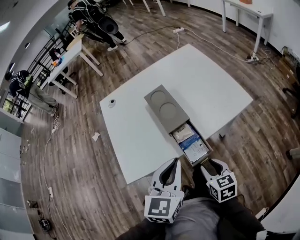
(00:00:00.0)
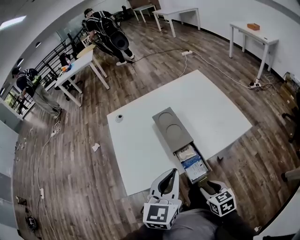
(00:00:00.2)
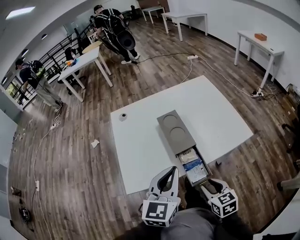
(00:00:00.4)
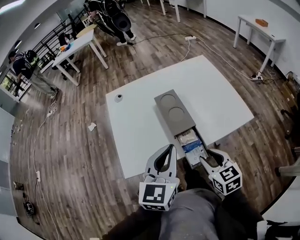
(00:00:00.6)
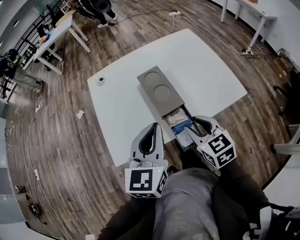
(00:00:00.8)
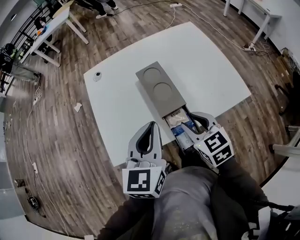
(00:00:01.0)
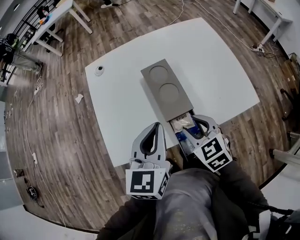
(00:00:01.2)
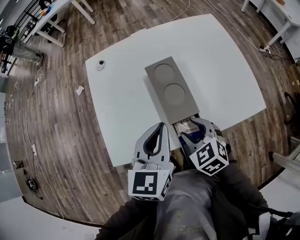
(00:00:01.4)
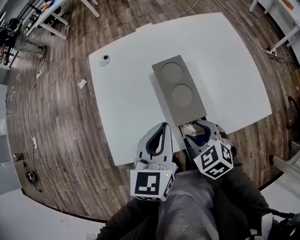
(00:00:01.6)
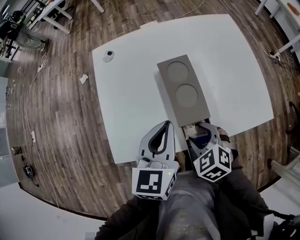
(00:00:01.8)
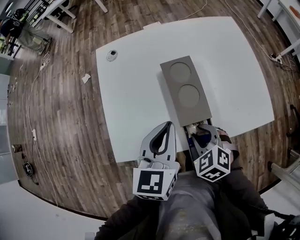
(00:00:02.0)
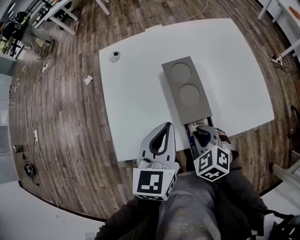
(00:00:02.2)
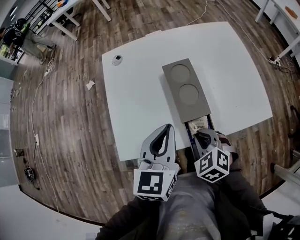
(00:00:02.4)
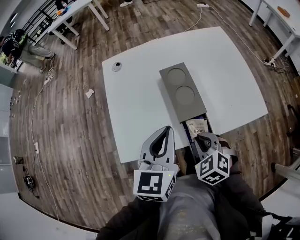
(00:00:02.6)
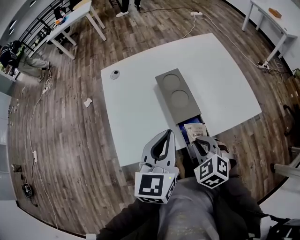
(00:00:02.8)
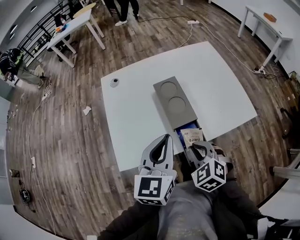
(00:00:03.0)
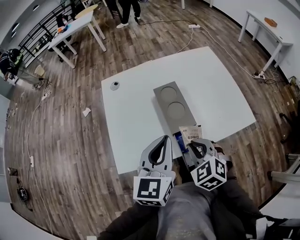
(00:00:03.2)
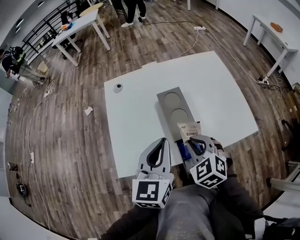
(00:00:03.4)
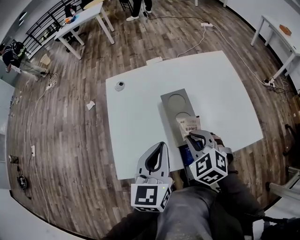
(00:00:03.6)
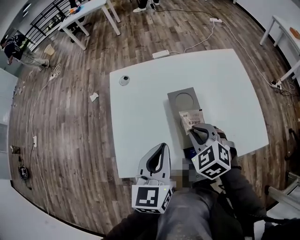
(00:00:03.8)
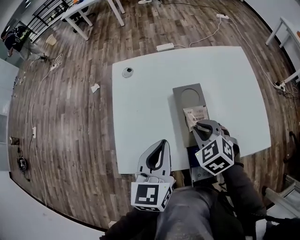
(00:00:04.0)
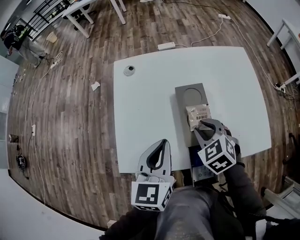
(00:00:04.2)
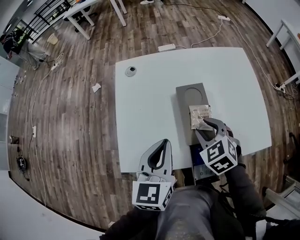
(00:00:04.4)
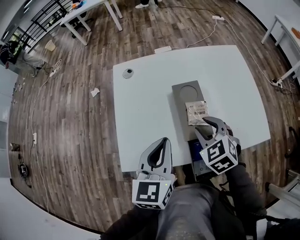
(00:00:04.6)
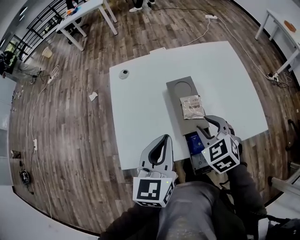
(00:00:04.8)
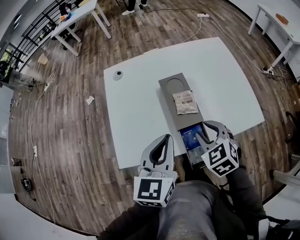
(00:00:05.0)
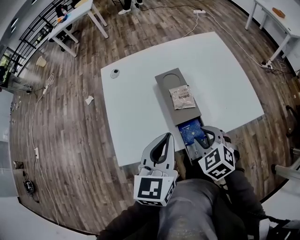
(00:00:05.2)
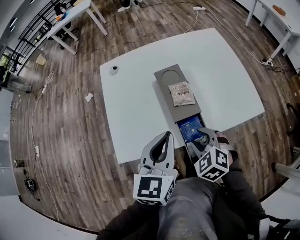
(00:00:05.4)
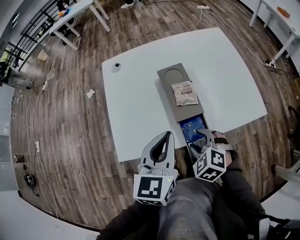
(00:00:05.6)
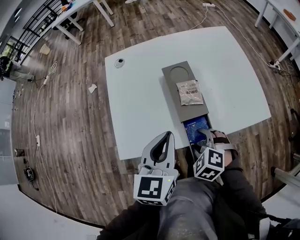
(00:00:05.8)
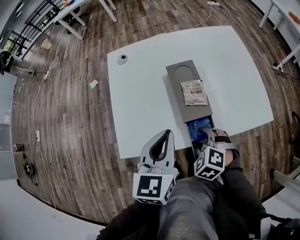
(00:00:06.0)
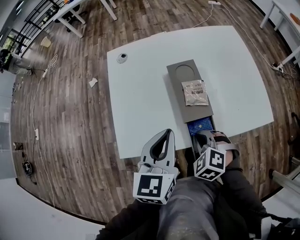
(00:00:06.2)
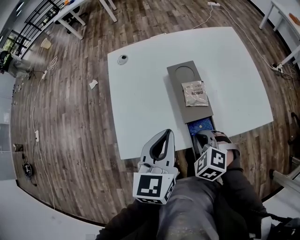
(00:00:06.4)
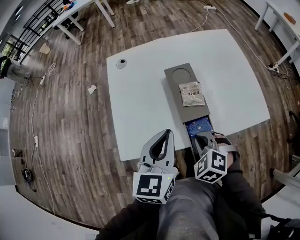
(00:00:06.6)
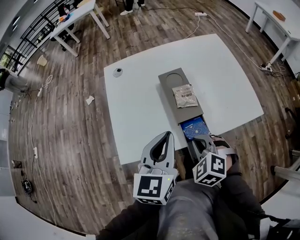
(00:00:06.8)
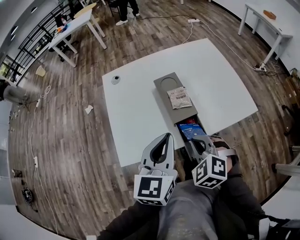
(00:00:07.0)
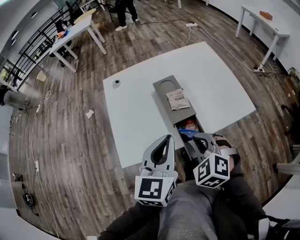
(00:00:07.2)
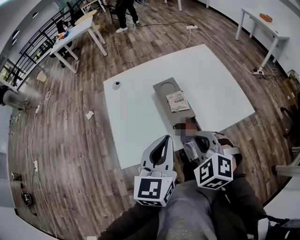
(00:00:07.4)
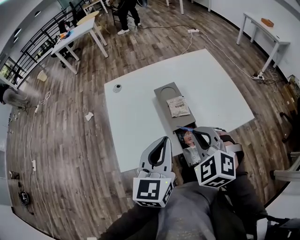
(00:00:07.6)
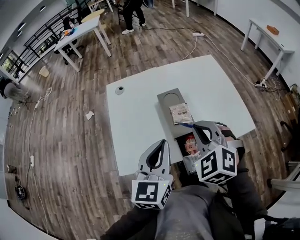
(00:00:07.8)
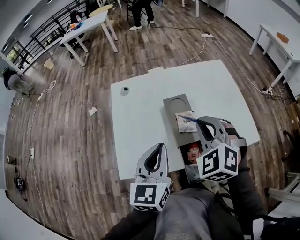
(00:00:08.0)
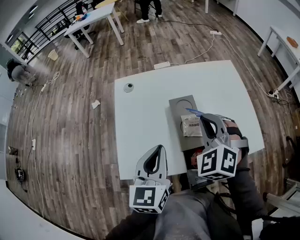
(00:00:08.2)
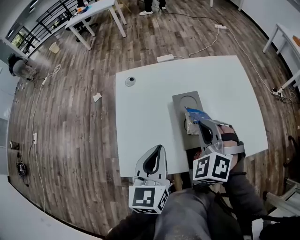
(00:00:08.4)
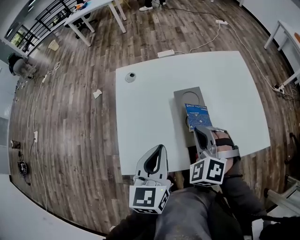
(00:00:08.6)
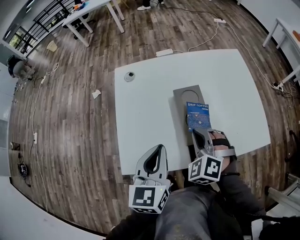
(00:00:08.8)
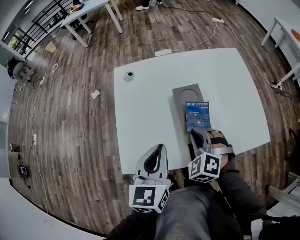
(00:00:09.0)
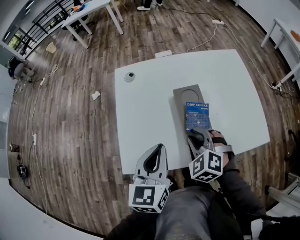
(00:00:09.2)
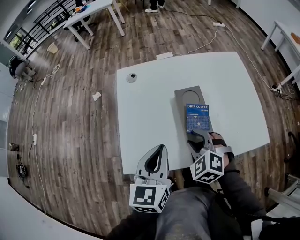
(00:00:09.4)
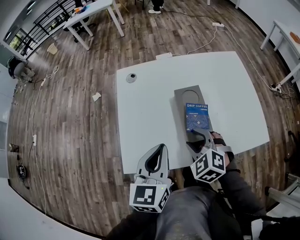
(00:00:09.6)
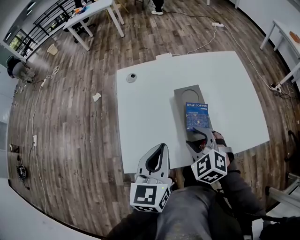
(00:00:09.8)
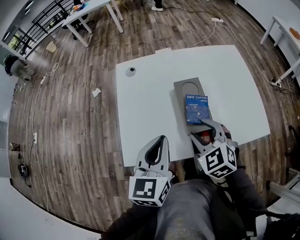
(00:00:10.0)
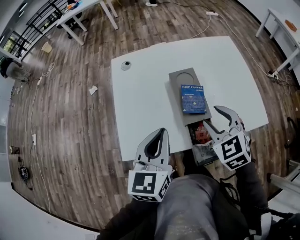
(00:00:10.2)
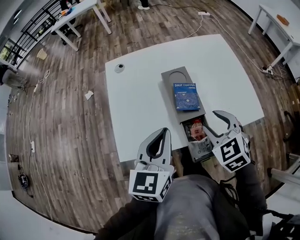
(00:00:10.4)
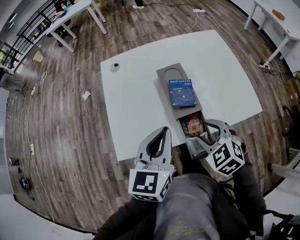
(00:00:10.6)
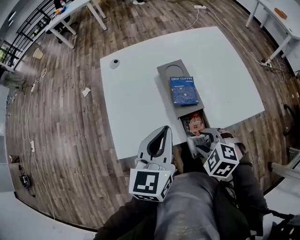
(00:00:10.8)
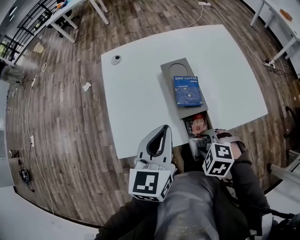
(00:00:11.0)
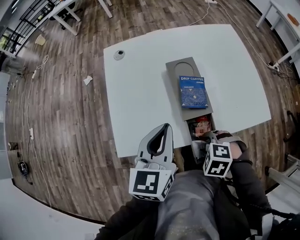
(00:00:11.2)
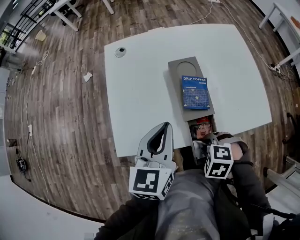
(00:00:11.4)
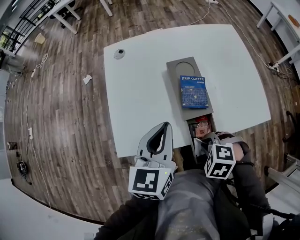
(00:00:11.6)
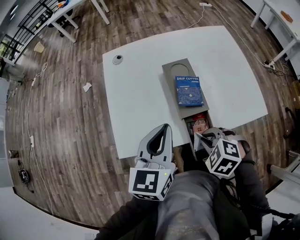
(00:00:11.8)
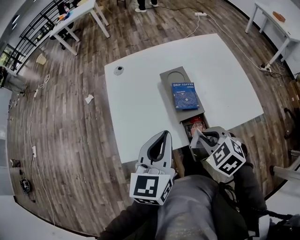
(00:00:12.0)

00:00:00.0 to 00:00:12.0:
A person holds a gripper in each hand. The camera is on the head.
00:00:00.0 to 00:00:01.6: The grippers both shift forward by about 15 cm. The right gripper rotates around the line of its fingers by approximately 40 degrees, counterclockwise from behind.
00:00:01.6 to 00:00:03.0: Both grippers travel together backward, approximately 5 cm. The right gripper closes up.
00:00:03.0 to 00:00:04.4: The left gripper moves forward, some 5 cm, while the right gripper heads forward, covering roughly 15 cm, and opens up.
00:00:04.4 to 00:00:06.0: The right gripper is displaced backward and downward by about 15 cm, rotates approximately 20 degrees, and opens.
00:00:06.0 to 00:00:07.6: The right gripper travels upward by approximately 20 cm, turns by approximately 30 degrees, and closes up; the left gripper heads upward, covering approximately 5 cm.
00:00:07.6 to 00:00:09.0: The right gripper goes roughly 15 cm downward and forward. Meanwhile the left gripper moves forward, to the left and downward, some 10 cm.
00:00:09.0 to 00:00:10.4: The left gripper changes place by approximately 5 cm. The right gripper heads to the right, backward and upward, covering some 10 cm, changes its angle by about 30 degrees, and opens.
00:00:10.4 to 00:00:12.0: The right gripper travels downward and back again, some 15 cm each way, and closes up.

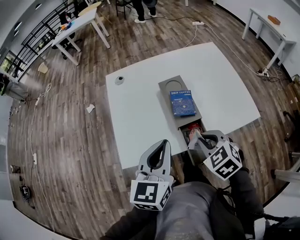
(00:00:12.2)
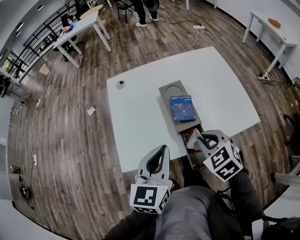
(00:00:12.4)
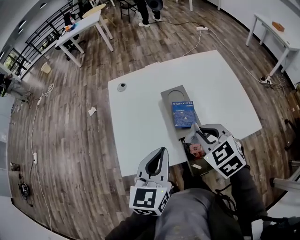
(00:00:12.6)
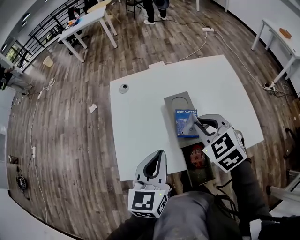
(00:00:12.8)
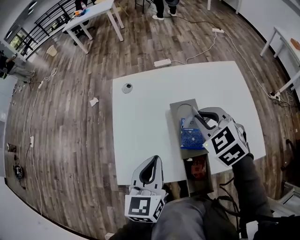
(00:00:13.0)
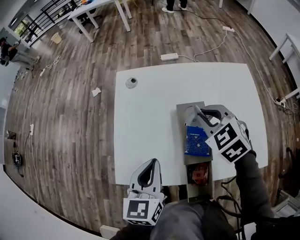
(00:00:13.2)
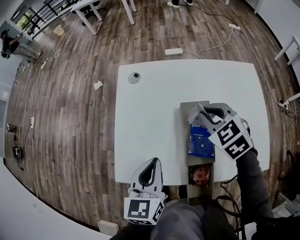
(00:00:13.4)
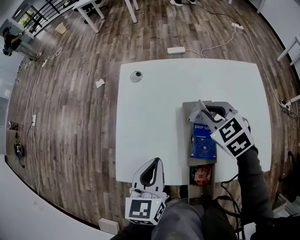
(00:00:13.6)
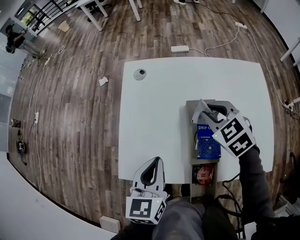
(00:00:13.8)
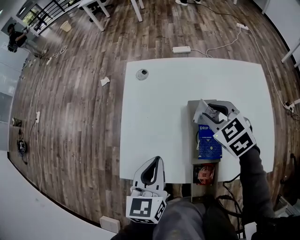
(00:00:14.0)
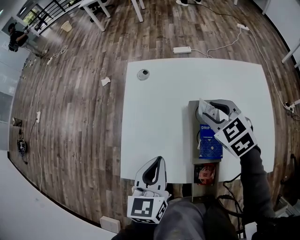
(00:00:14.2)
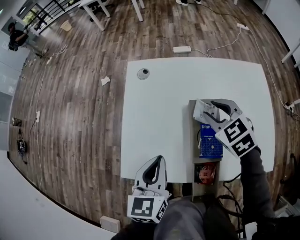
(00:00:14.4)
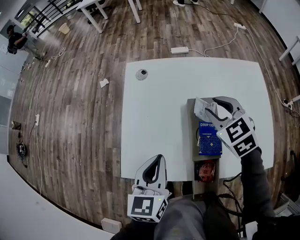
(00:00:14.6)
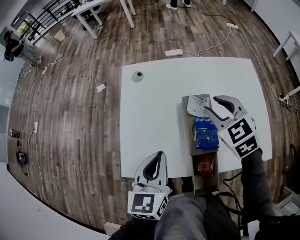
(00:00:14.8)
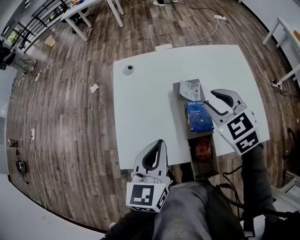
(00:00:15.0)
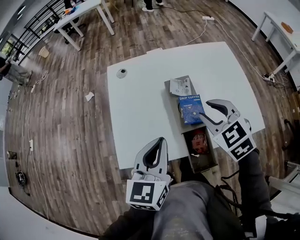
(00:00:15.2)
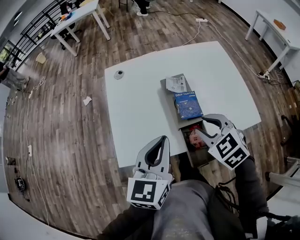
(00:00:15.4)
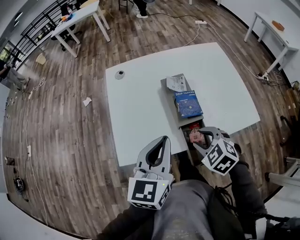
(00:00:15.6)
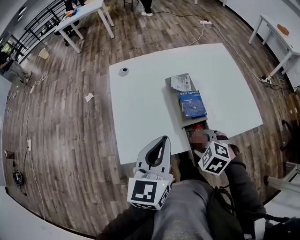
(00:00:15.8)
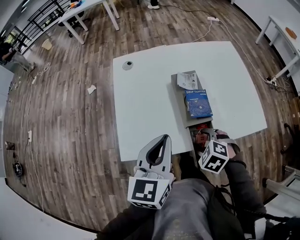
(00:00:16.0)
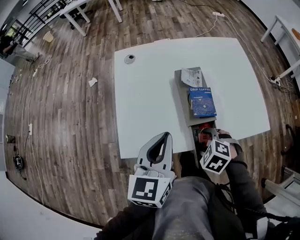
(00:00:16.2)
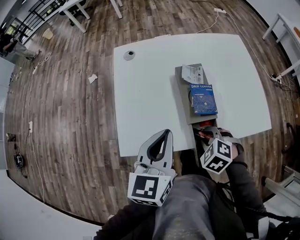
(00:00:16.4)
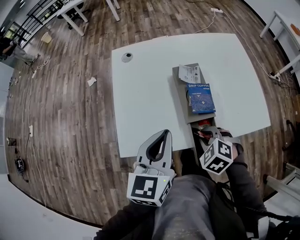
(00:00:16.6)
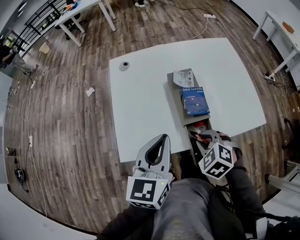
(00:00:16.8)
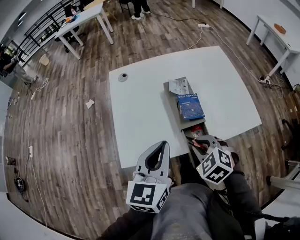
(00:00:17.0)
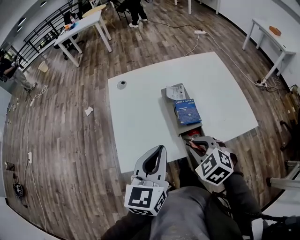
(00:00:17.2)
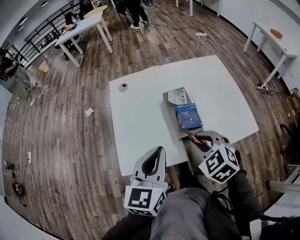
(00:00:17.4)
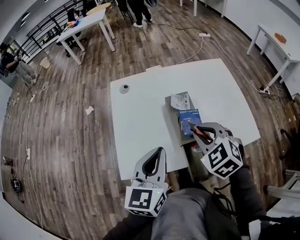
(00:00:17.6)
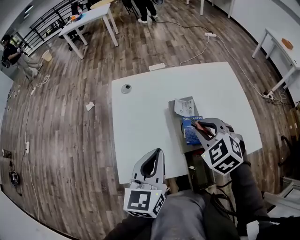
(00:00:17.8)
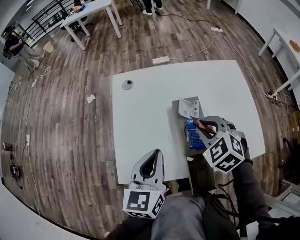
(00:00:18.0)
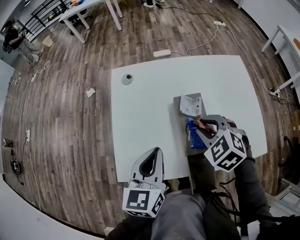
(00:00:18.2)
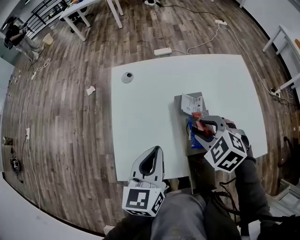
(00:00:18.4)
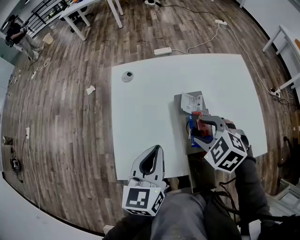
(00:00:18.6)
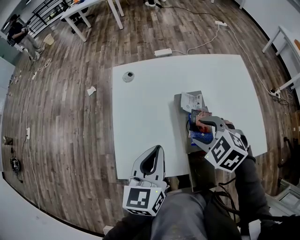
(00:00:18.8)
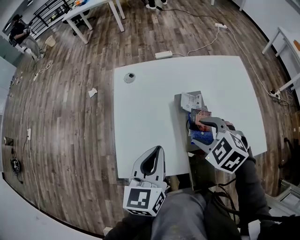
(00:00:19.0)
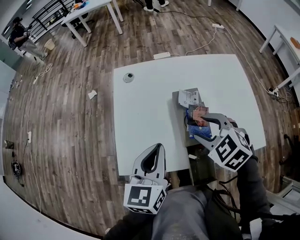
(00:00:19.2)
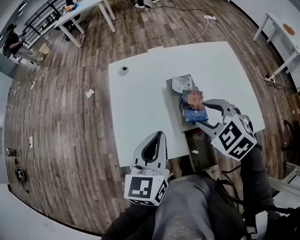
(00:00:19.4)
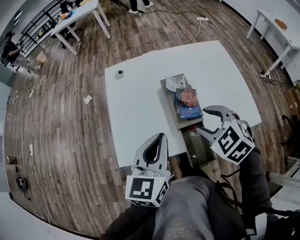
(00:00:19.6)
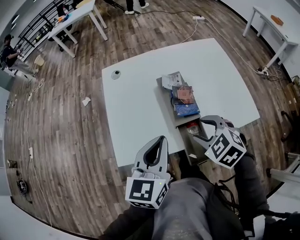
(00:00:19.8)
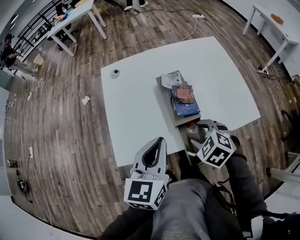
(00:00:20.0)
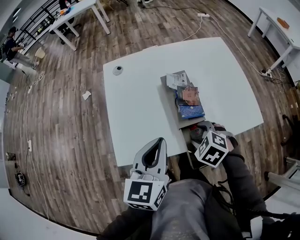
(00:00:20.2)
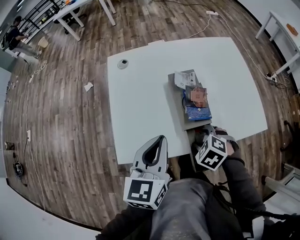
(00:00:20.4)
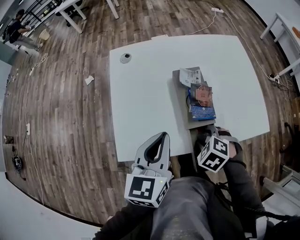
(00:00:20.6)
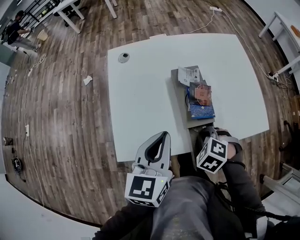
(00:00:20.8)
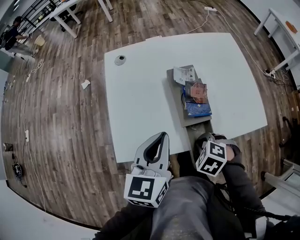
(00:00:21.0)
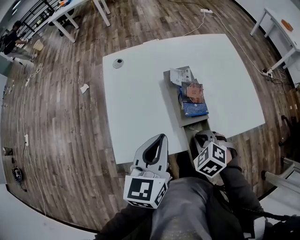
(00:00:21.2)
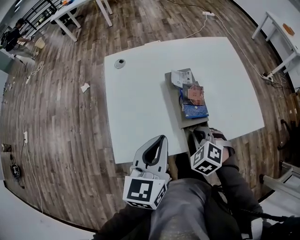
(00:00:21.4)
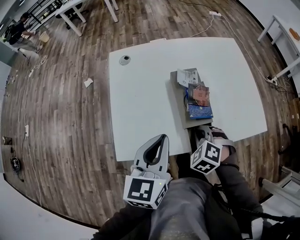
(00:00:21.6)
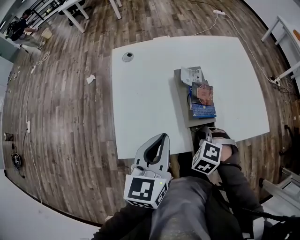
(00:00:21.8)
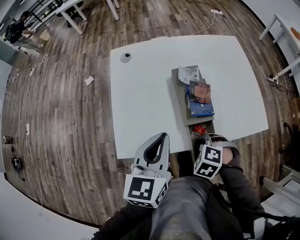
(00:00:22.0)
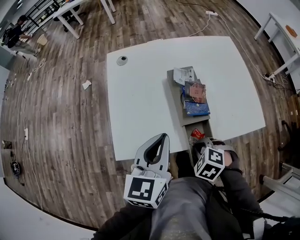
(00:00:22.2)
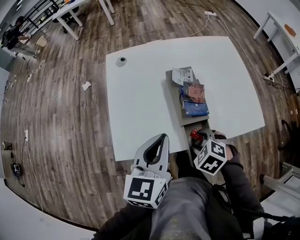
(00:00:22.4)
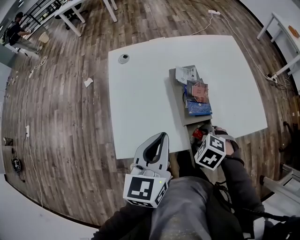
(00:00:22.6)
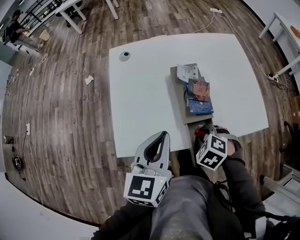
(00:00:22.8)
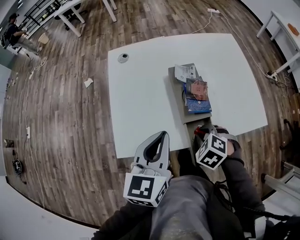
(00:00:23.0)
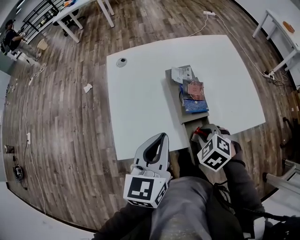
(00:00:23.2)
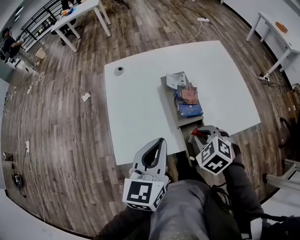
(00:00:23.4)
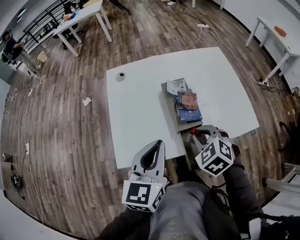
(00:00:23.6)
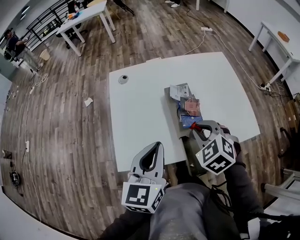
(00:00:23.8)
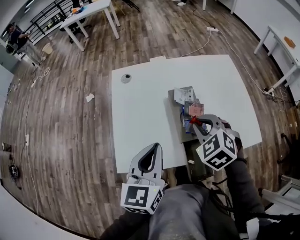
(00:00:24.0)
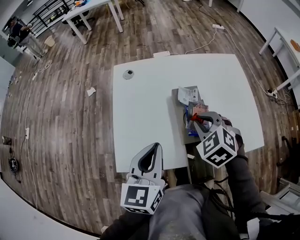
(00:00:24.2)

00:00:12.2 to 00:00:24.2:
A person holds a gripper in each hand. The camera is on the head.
00:00:12.2 to 00:00:13.8: The right gripper shifts some 25 cm forward. The left gripper moves forward and downward, about 10 cm, and rotates some 30 degrees.
00:00:13.8 to 00:00:15.2: The left gripper goes about 5 cm upward and backward. Meanwhile the right gripper is displaced backward and upward by some 15 cm.
00:00:15.2 to 00:00:16.6: The right gripper shifts about 20 cm downward and backward, turns by roughly 30 degrees, and opens, then closes again.
00:00:16.6 to 00:00:18.2: The right gripper goes about 20 cm forward and upward. The left gripper travels forward by approximately 5 cm.
00:00:18.2 to 00:00:19.8: The left gripper goes about 10 cm backward, while the right gripper is displaced backward by roughly 15 cm, and opens up.
00:00:19.8 to 00:00:21.2: The right gripper heads downward, covering about 10 cm, and closes its fingers.
00:00:21.2 to 00:00:22.6: The right gripper opens up.
00:00:22.6 to 00:00:24.2: The right gripper moves roughly 20 cm, rotates about 30 degrees, and closes its fingers.
